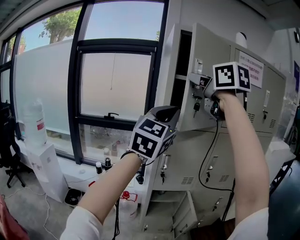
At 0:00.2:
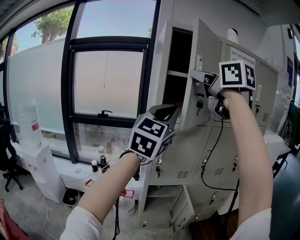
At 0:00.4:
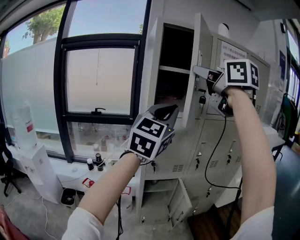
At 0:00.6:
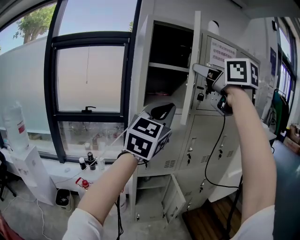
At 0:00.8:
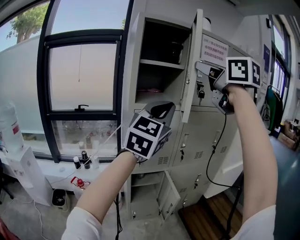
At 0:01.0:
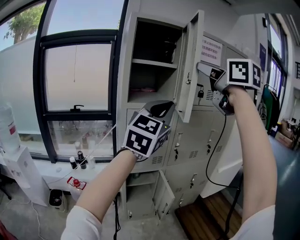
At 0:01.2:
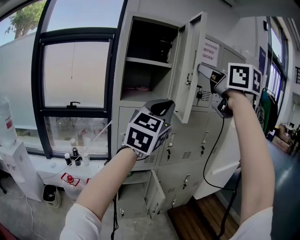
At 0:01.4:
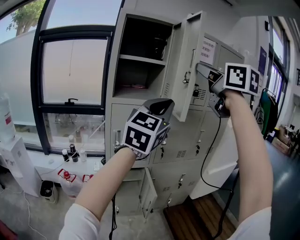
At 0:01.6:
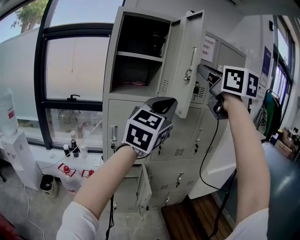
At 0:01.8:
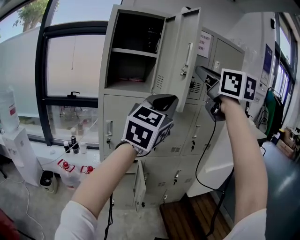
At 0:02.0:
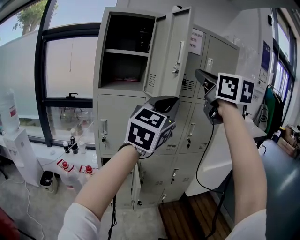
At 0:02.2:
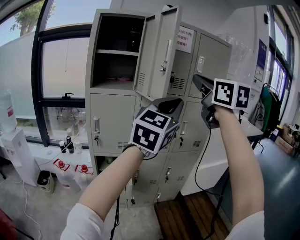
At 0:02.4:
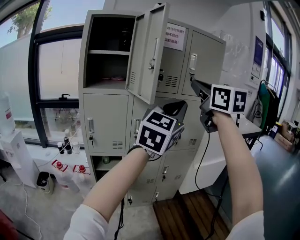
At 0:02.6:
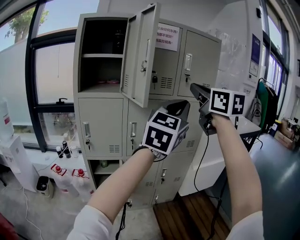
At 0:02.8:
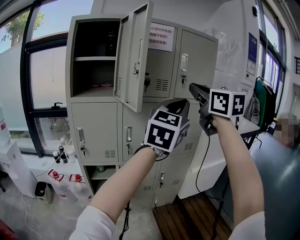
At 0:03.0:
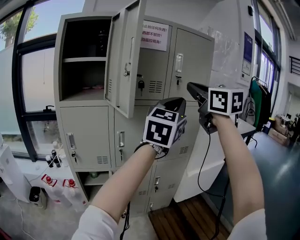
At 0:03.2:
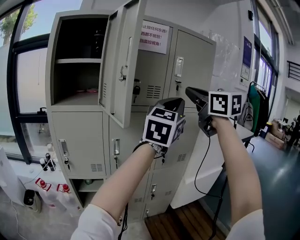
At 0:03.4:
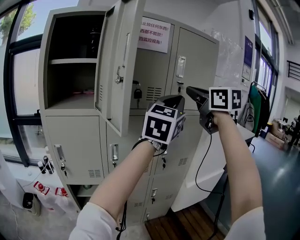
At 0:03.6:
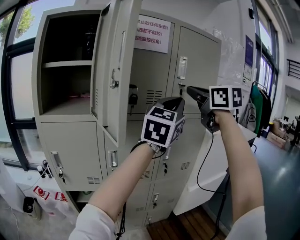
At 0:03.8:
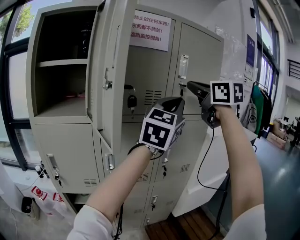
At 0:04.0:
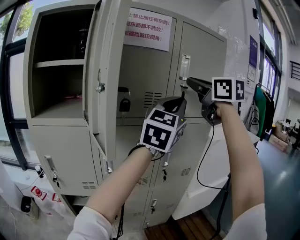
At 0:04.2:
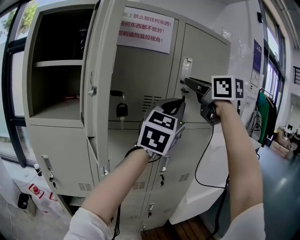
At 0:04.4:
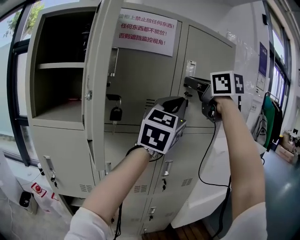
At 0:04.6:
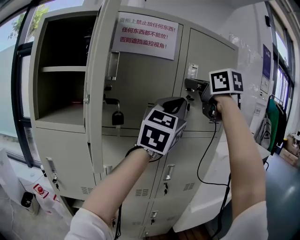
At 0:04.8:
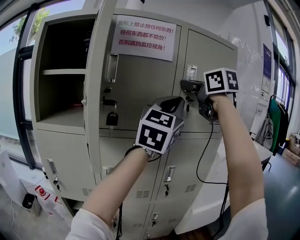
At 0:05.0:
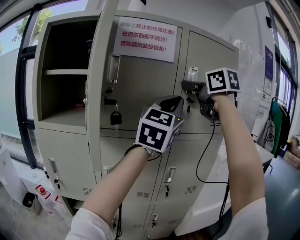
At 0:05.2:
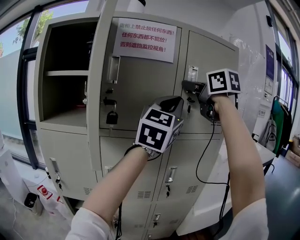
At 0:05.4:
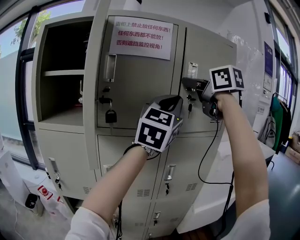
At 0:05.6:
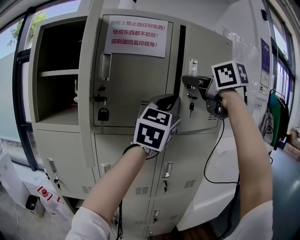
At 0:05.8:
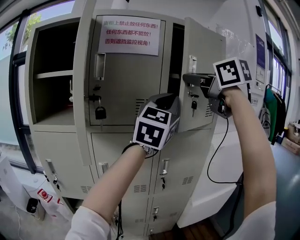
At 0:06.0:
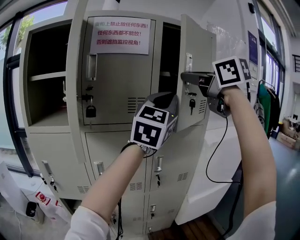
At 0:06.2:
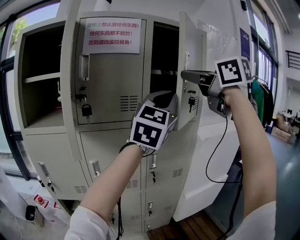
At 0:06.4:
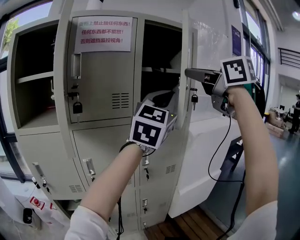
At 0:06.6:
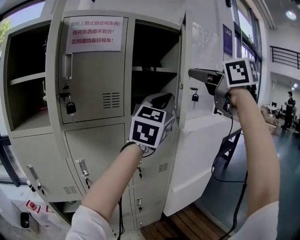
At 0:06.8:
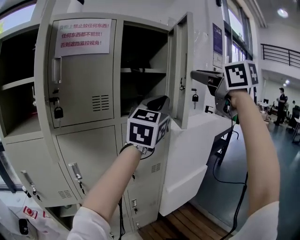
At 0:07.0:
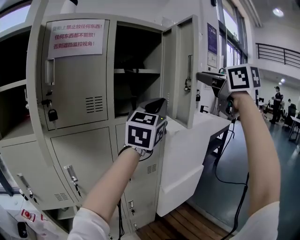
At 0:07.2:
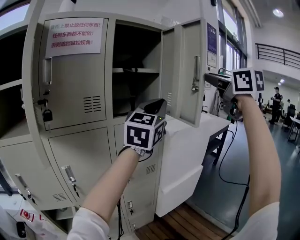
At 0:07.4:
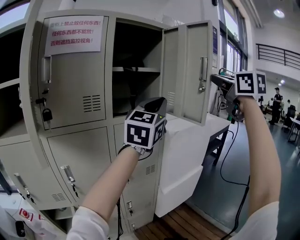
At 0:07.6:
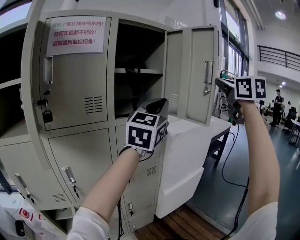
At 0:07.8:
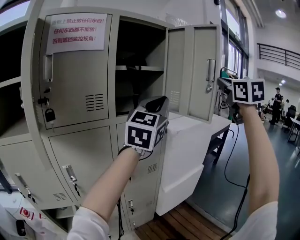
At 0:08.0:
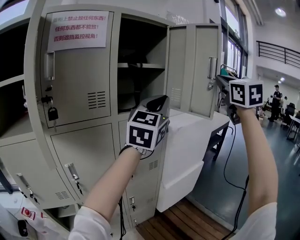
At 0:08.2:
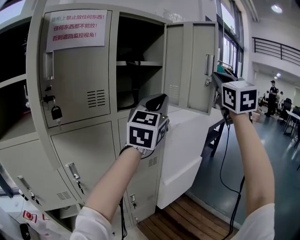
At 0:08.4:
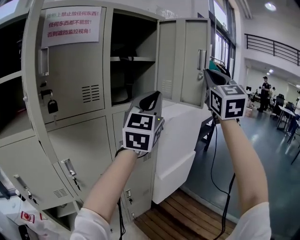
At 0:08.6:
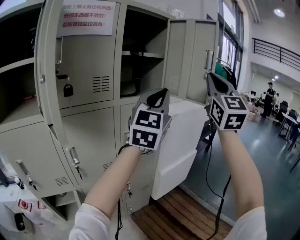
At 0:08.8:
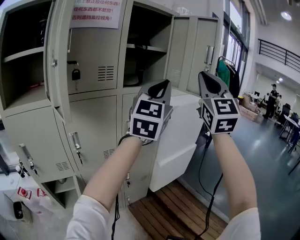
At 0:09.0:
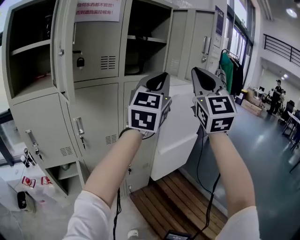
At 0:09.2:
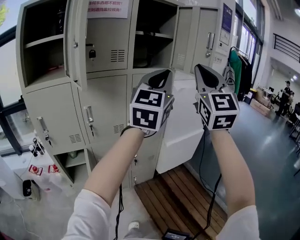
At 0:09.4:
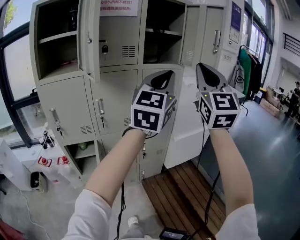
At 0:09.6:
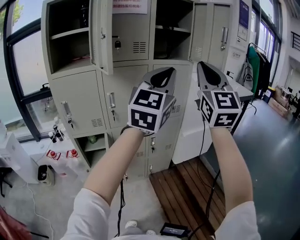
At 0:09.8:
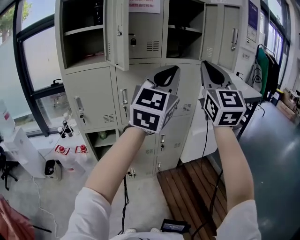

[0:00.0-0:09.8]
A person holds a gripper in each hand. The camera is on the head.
0:00.0 to 0:01.4: Both grippers travel together to the right, about 20 cm.
0:01.4 to 0:02.8: Both grippers move to the right, roughly 25 cm. The right gripper closes.
0:02.8 to 0:04.2: The two grippers go approximately 25 cm forward.
0:04.2 to 0:05.6: The grippers make only small movements.
0:05.6 to 0:07.0: The right gripper goes roughly 25 cm to the right and backward, and turns by roughly 30 degrees. The left gripper moves to the right, some 15 cm, and rotates some 20 degrees.
0:07.0 to 0:08.4: The right gripper rotates approximately 40 degrees, and closes up.
0:08.4 to 0:09.8: The right gripper moves backward, to the left and downward, about 30 cm, and rotates some 30 degrees. The left gripper heads backward, covering roughly 25 cm.

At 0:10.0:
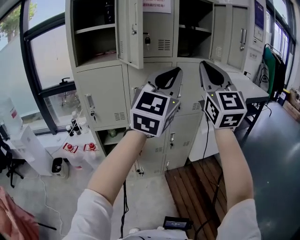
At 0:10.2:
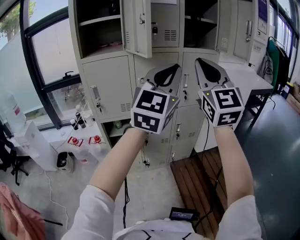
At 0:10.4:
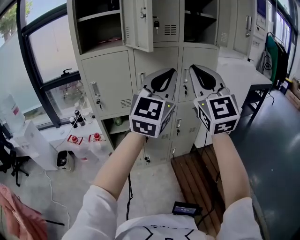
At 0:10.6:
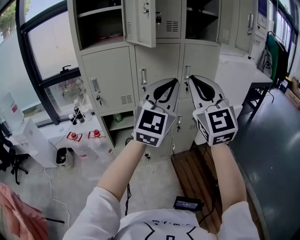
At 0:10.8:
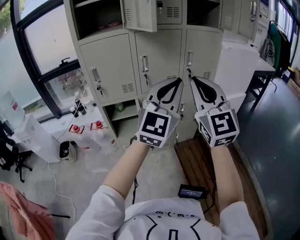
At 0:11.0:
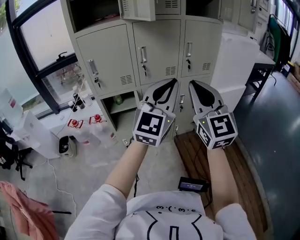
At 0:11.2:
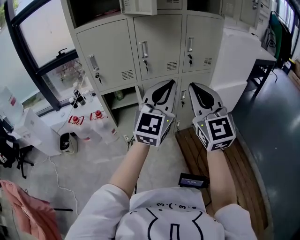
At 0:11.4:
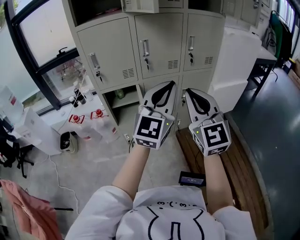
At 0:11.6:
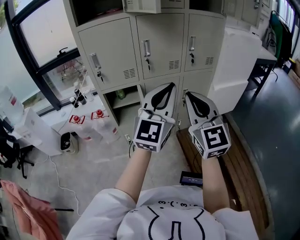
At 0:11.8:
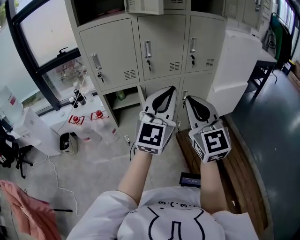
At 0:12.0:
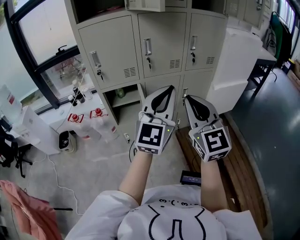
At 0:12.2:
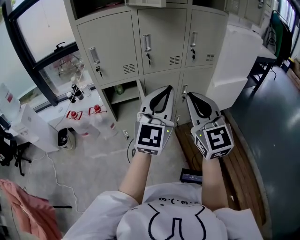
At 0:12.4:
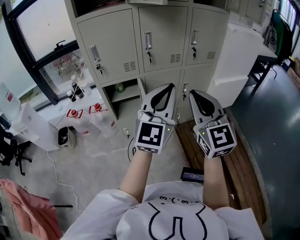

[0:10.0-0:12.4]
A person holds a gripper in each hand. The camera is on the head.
0:10.0 to 0:11.2: Both grippers move downward, roughly 20 cm.
0:11.2 to 0:12.4: The right gripper ends up some 5 cm from where it was.

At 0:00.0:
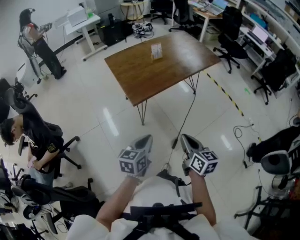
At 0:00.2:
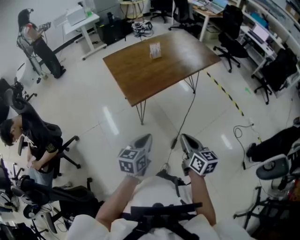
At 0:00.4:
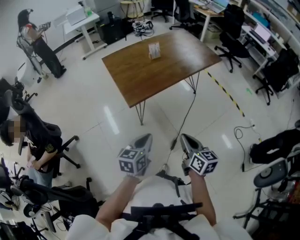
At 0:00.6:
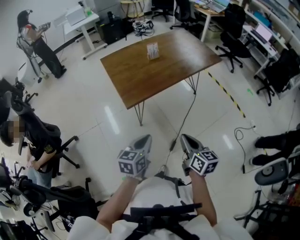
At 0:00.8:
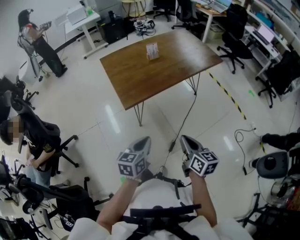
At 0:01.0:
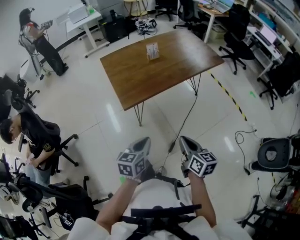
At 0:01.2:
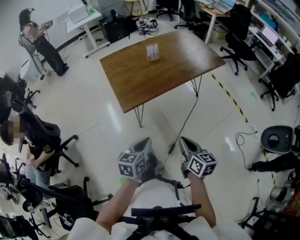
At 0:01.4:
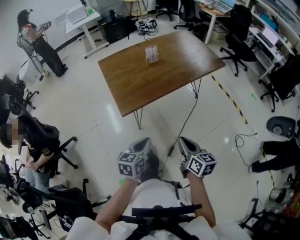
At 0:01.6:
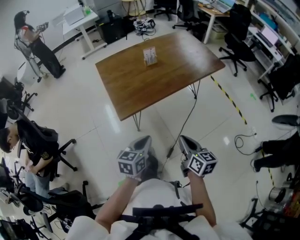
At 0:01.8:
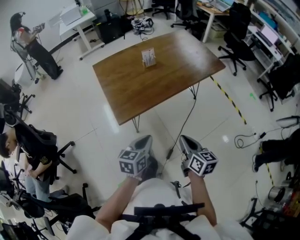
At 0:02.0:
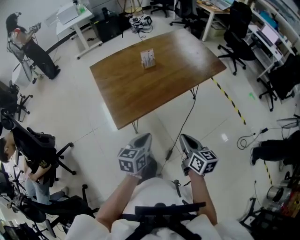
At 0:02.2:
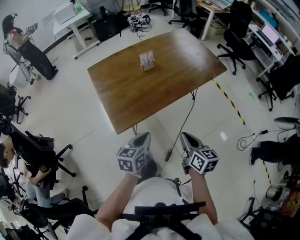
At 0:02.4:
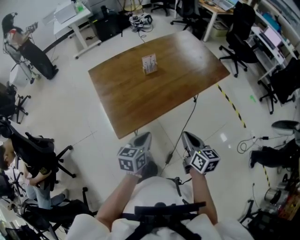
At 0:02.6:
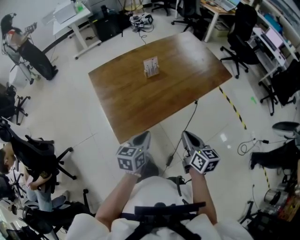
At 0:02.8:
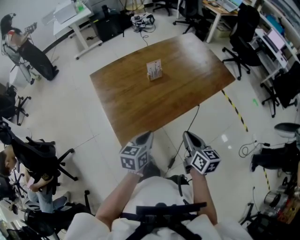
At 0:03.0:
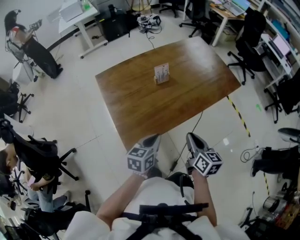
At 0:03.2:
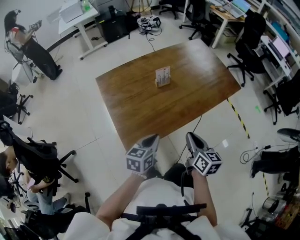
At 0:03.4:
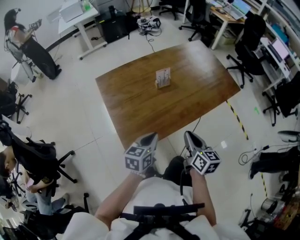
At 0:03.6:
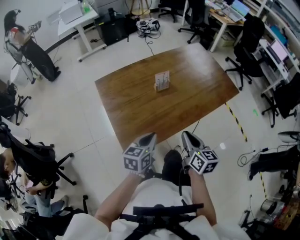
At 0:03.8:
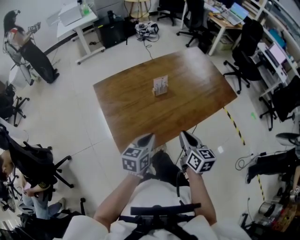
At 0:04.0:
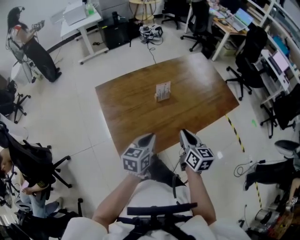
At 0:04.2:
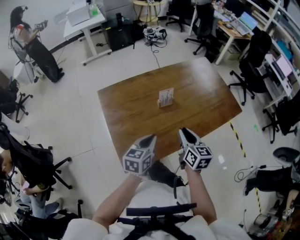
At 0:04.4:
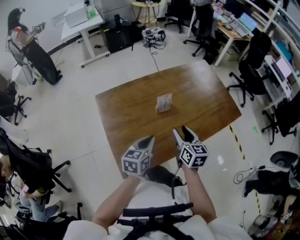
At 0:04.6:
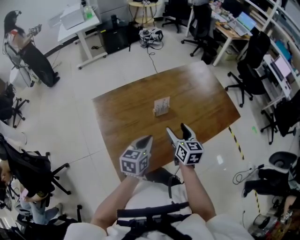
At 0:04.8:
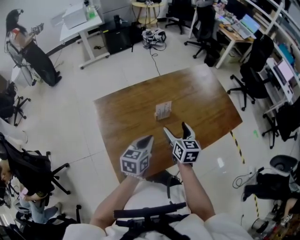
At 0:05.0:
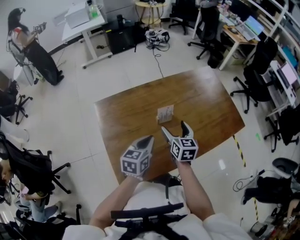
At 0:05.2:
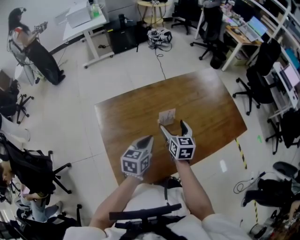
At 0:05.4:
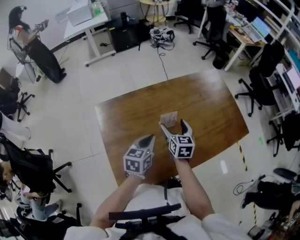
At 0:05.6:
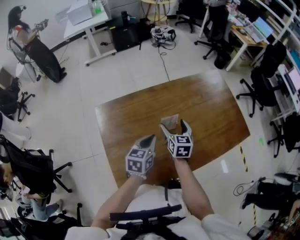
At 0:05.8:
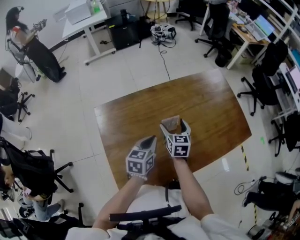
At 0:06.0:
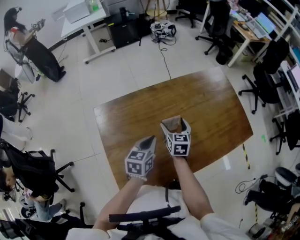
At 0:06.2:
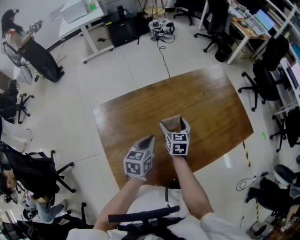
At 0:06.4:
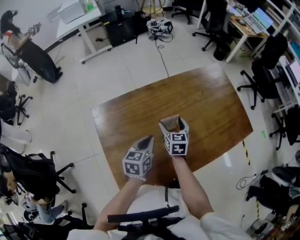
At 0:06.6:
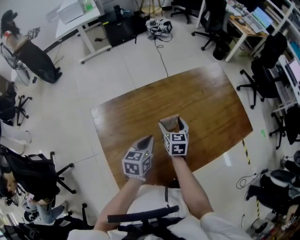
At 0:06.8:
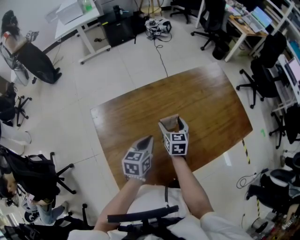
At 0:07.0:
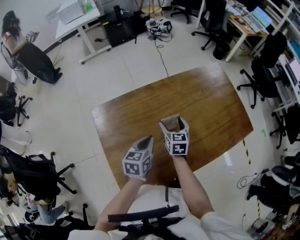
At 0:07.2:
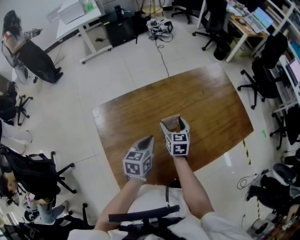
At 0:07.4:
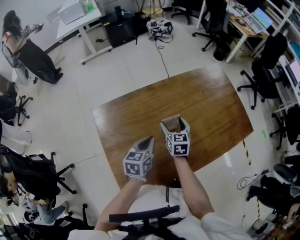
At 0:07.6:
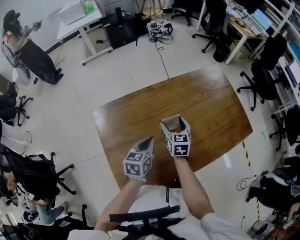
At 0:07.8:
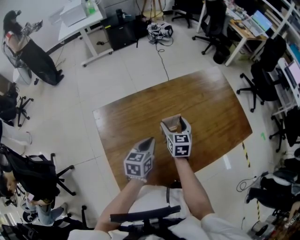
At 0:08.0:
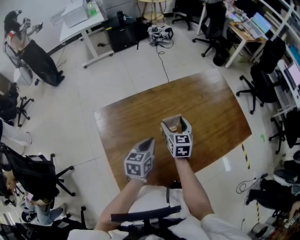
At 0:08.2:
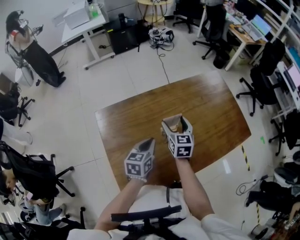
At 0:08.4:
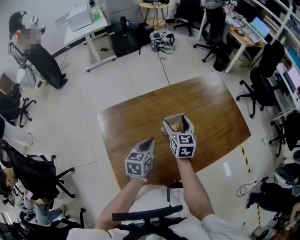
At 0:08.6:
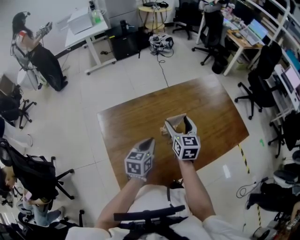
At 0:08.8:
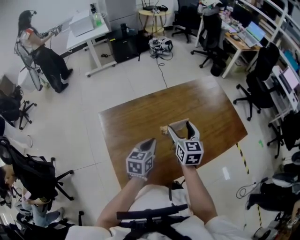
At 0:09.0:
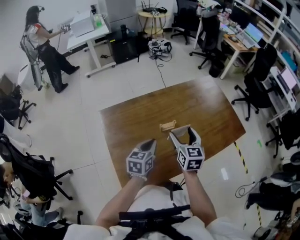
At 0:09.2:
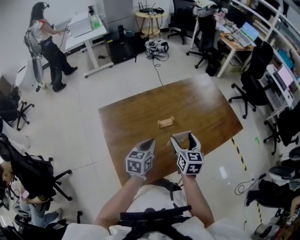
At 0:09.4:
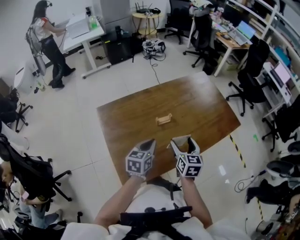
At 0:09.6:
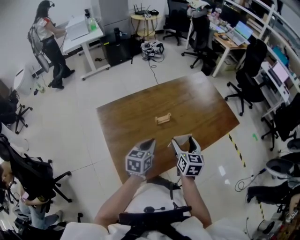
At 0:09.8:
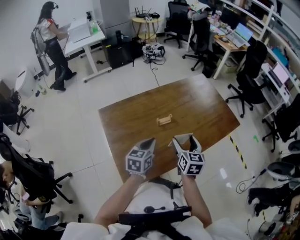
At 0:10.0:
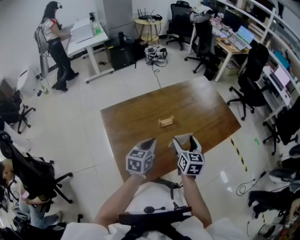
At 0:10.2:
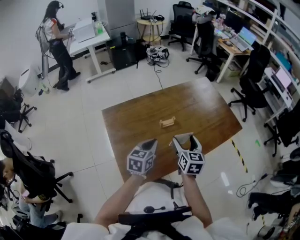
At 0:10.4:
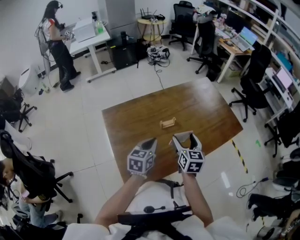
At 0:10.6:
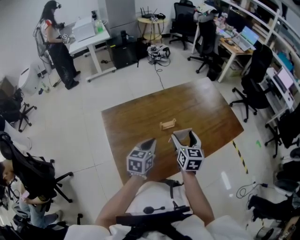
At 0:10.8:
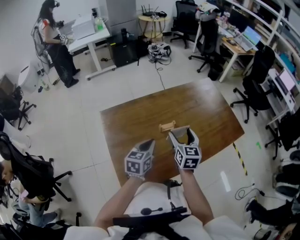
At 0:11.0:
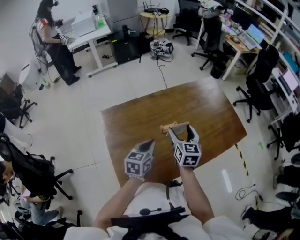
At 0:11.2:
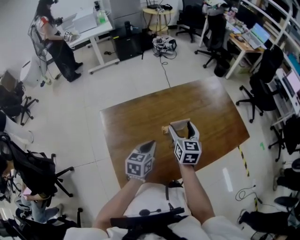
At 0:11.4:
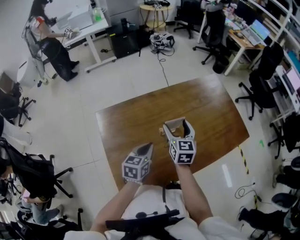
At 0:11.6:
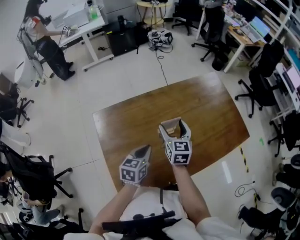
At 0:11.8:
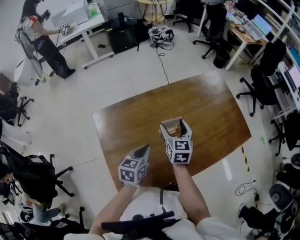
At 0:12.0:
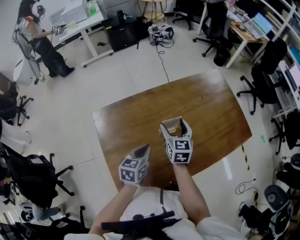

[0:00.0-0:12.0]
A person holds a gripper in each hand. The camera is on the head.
0:00.0 to 0:01.6: Both grippers move forward and to the right, roughly 15 cm.
0:01.6 to 0:03.0: Both grippers travel together forward, about 25 cm.
0:03.0 to 0:04.4: The left gripper is displaced forward by some 15 cm. The right gripper shifts roughly 20 cm forward and to the left, and opens its fingers.
0:04.4 to 0:06.0: The right gripper is displaced forward and downward by approximately 20 cm, and opens. The left gripper shifts some 15 cm forward.
0:06.0 to 0:07.6: Both grippers stay about where they are.
0:07.6 to 0:09.0: The right gripper is displaced upward and backward by roughly 15 cm, while the left gripper travels backward by roughly 5 cm.
0:09.0 to 0:10.4: The right gripper heads backward, covering some 5 cm.
0:10.4 to 0:12.0: The left gripper heads forward and downward, covering approximately 10 cm. Meanwhile the right gripper is displaced forward and to the left by some 20 cm.
